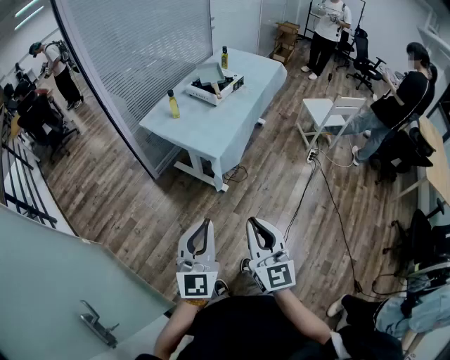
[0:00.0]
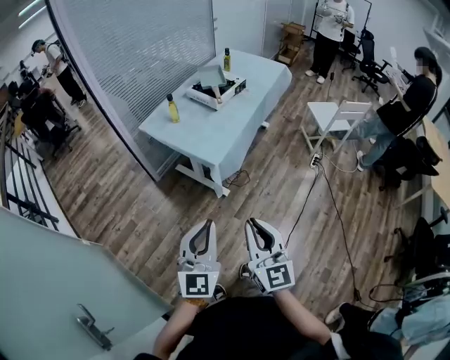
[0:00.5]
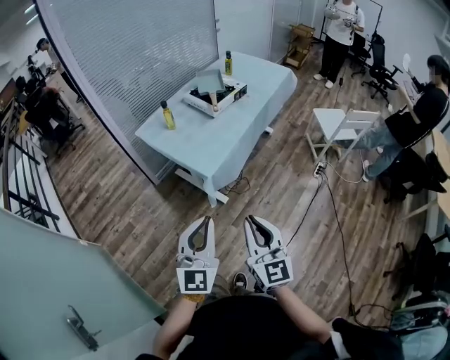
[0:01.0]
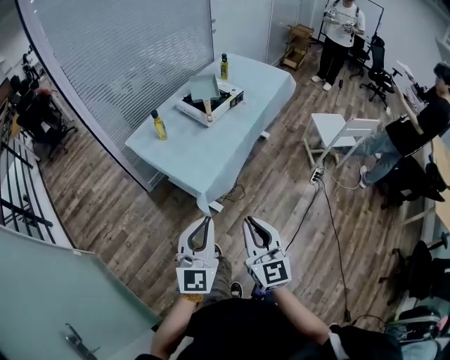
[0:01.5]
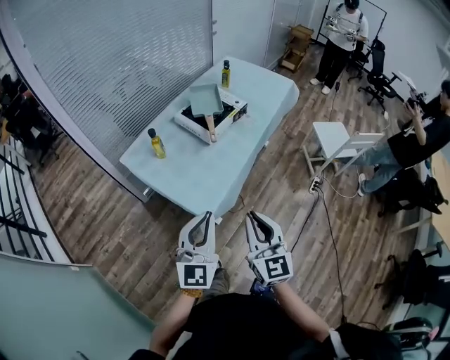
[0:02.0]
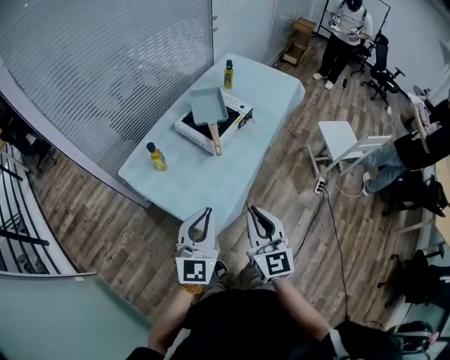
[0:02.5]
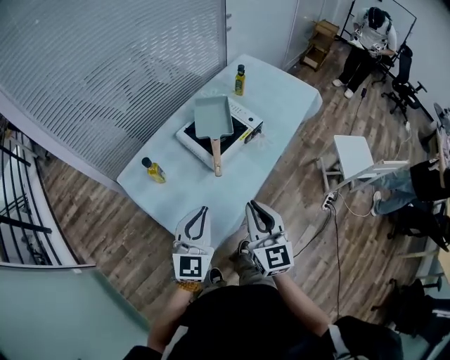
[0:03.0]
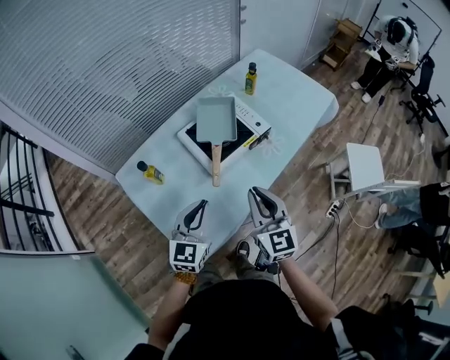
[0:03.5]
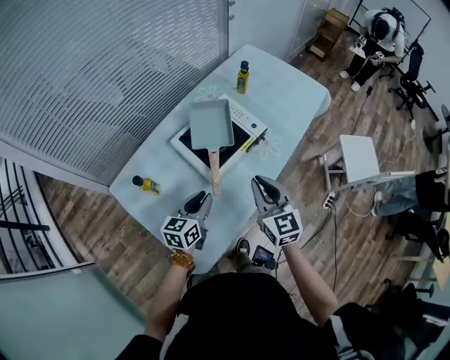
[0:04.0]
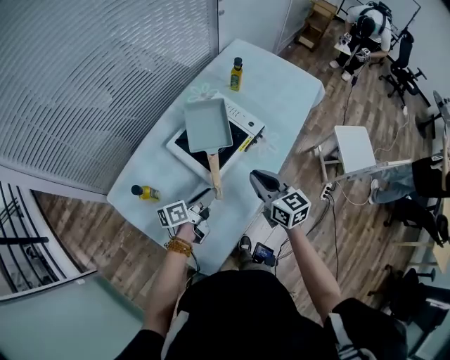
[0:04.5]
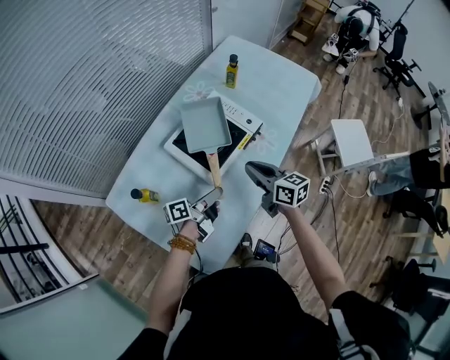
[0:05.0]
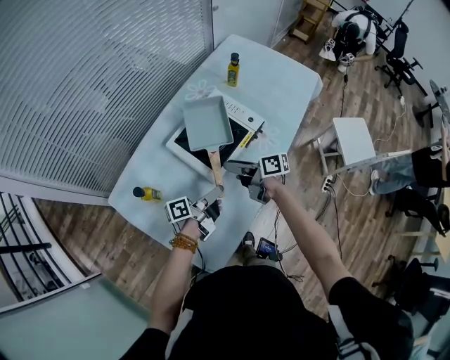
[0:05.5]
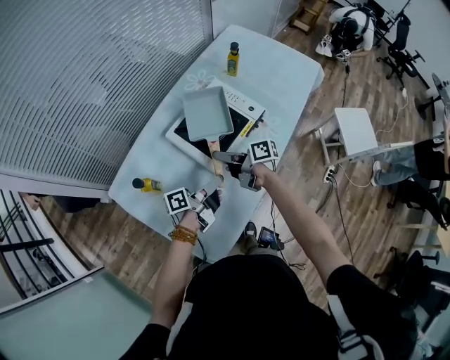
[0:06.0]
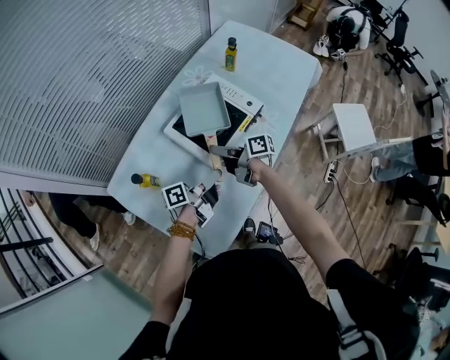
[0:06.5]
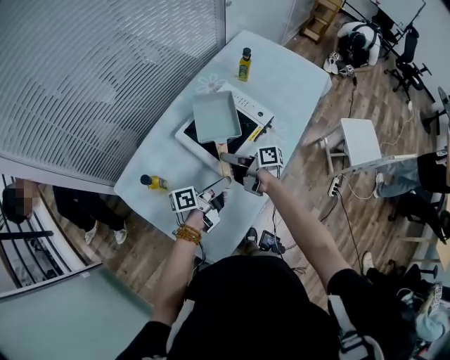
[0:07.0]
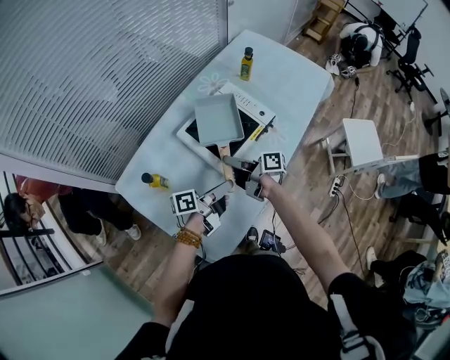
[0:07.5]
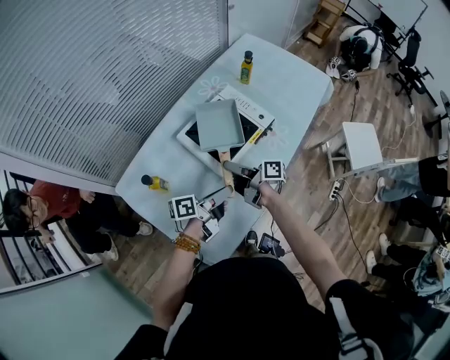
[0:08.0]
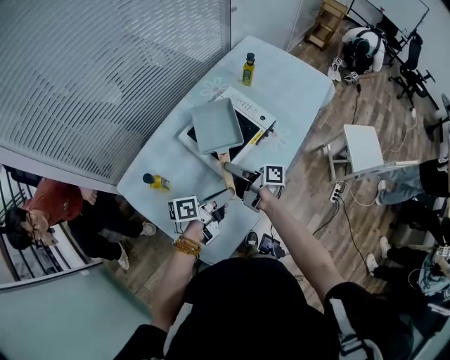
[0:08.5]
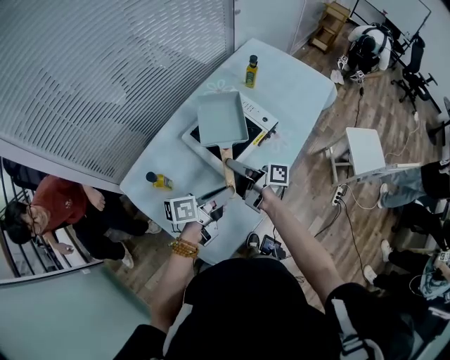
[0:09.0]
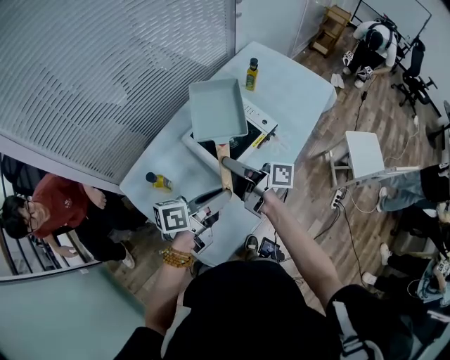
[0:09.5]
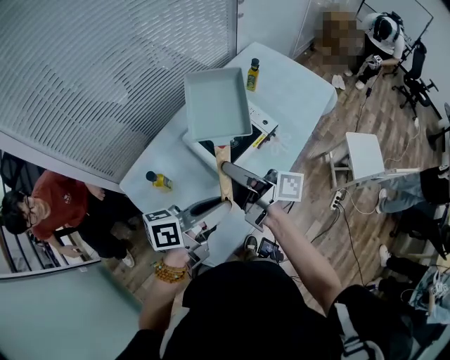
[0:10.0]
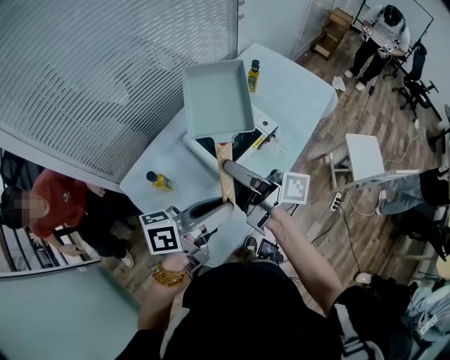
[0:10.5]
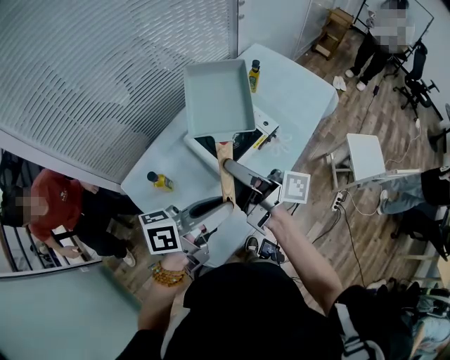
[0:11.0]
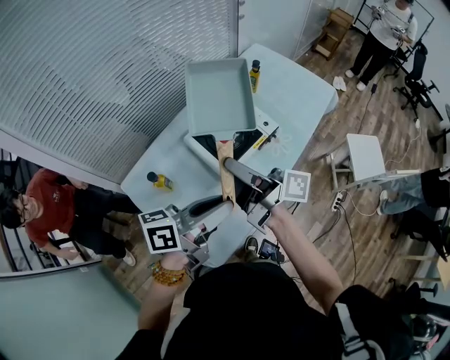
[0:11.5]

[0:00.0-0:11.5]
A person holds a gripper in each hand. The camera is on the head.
0:00.0 to 0:02.0: Both grippers move forward, roughly 35 cm.
0:02.0 to 0:04.0: The left gripper heads forward and downward, covering some 40 cm, and turns by about 40 degrees. The right gripper goes some 40 cm forward.
0:04.0 to 0:06.0: The left gripper shifts by some 5 cm, and rolls counterclockwise, seen from behind, by roughly 50 degrees. The right gripper heads downward, to the left and forward, covering about 20 cm, twists some 70 degrees clockwise, seen from behind, and opens up.
0:06.0 to 0:07.5: The grippers move only a little.
0:07.5 to 0:09.5: Both grippers move upward, roughly 15 cm.
0:09.5 to 0:11.5: Both grippers travel together upward, some 10 cm.

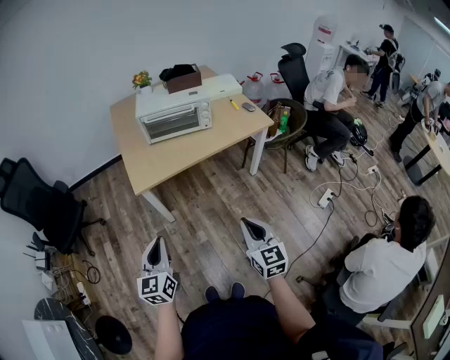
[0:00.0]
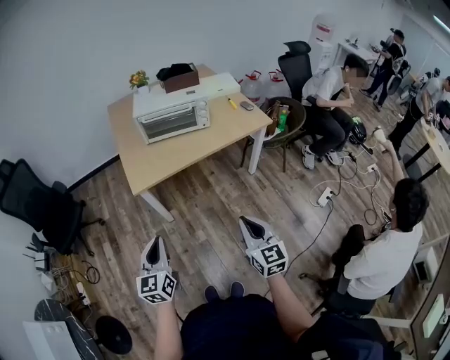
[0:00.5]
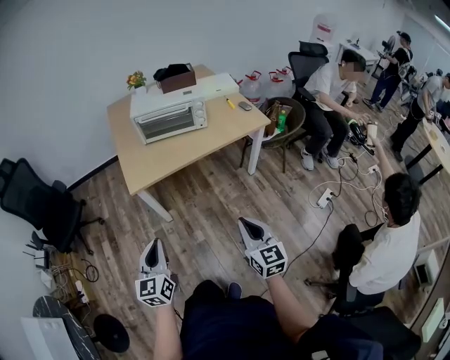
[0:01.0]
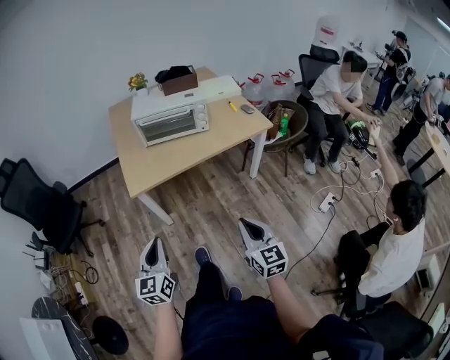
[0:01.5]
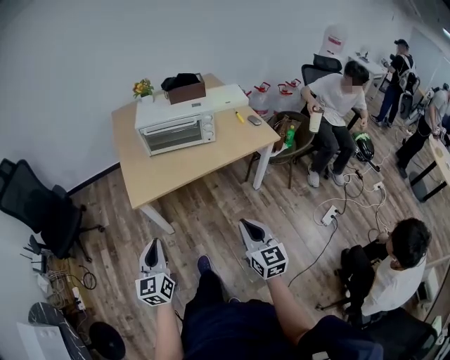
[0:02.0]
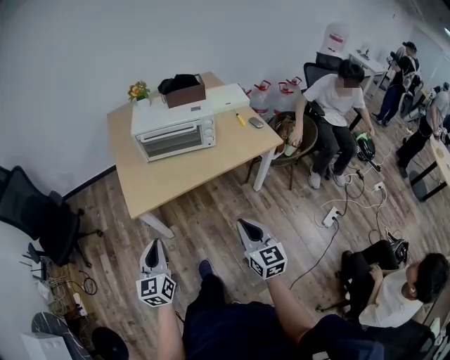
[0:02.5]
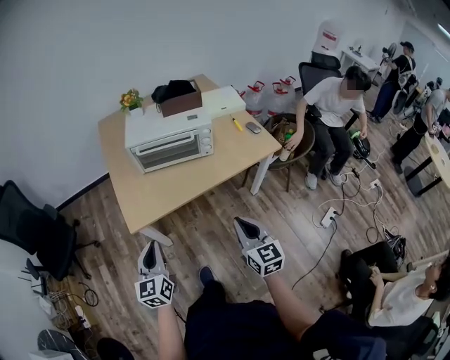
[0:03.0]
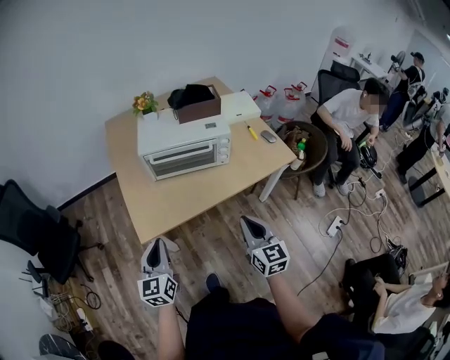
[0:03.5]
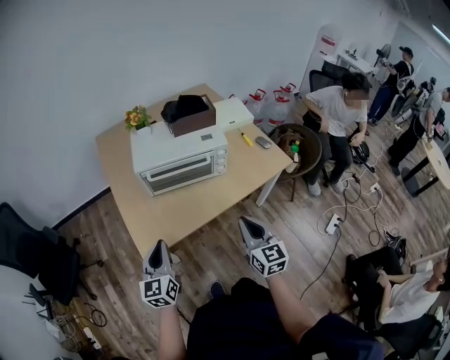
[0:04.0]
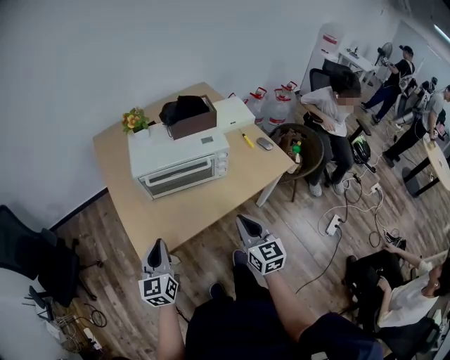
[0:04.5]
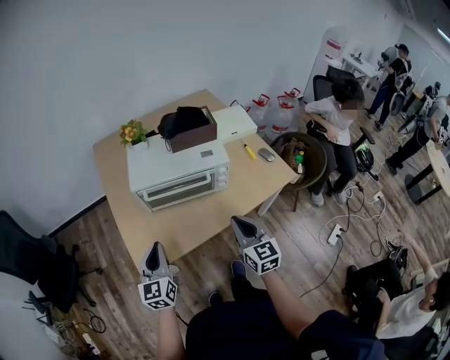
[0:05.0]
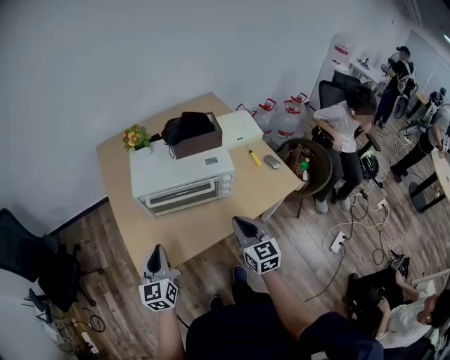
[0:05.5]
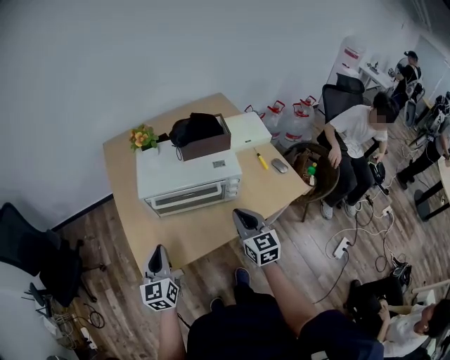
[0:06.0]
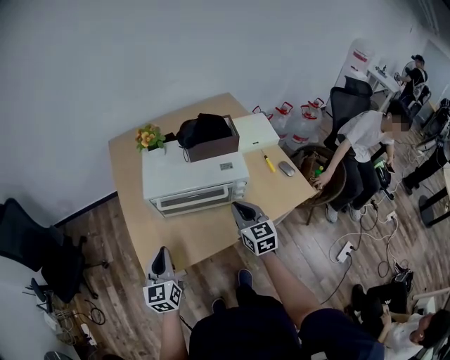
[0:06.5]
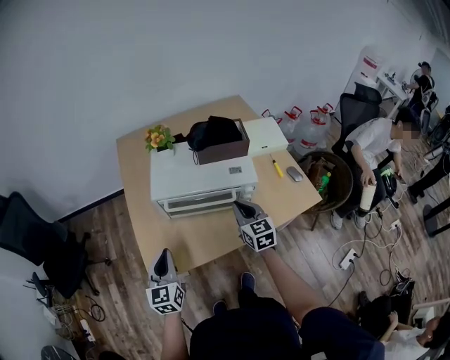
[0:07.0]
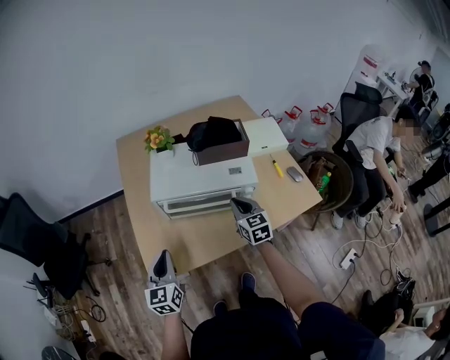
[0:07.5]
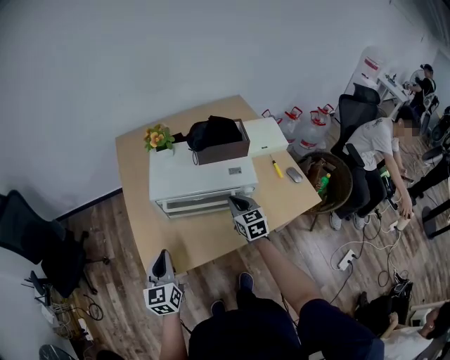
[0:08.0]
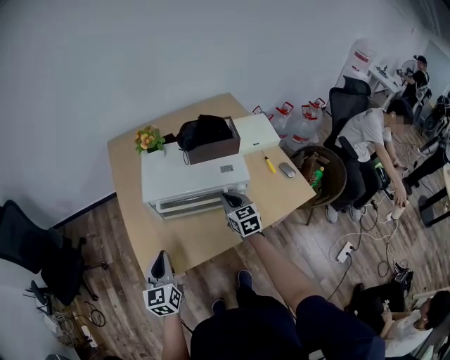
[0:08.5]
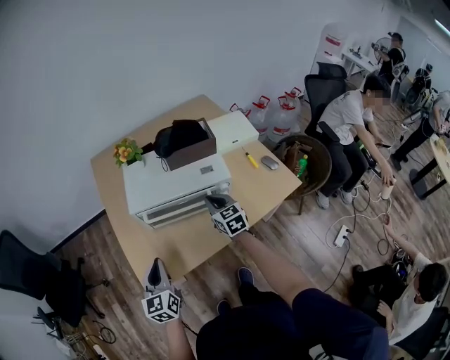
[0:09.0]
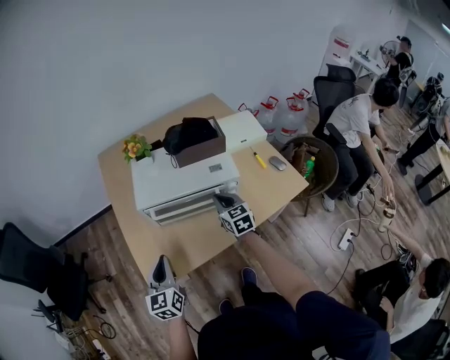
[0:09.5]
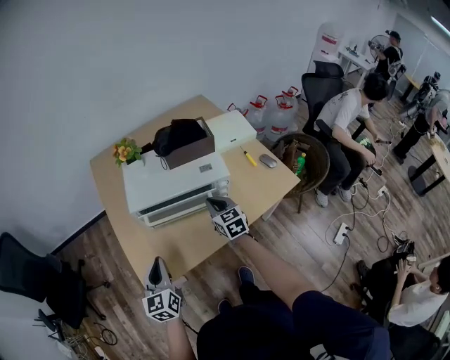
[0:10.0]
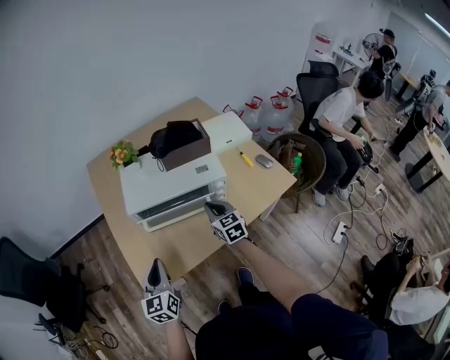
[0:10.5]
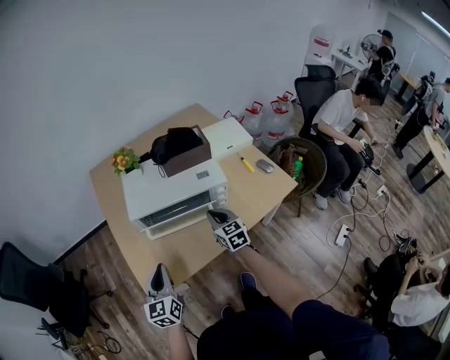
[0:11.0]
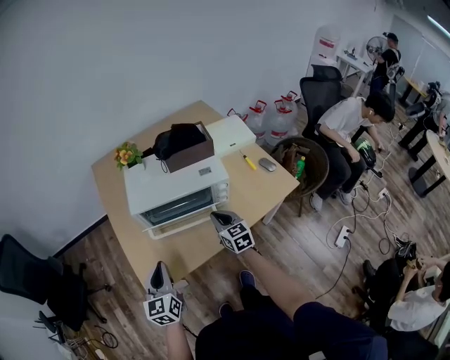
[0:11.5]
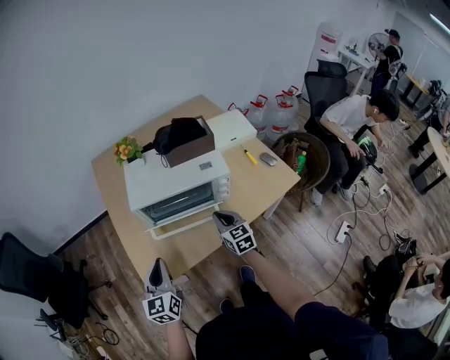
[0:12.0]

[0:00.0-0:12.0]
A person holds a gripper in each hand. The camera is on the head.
0:00.0 to 0:02.0: The two grippers go some 10 cm forward.
0:02.0 to 0:04.0: Both grippers travel together forward, about 30 cm.
0:04.0 to 0:06.0: The left gripper shifts approximately 10 cm forward. The right gripper goes approximately 20 cm forward.
0:06.0 to 0:08.0: The right gripper heads forward and downward, covering approximately 15 cm.
0:08.0 to 0:10.0: The grippers move only a little.
0:10.0 to 0:12.0: The right gripper shifts about 5 cm backward.

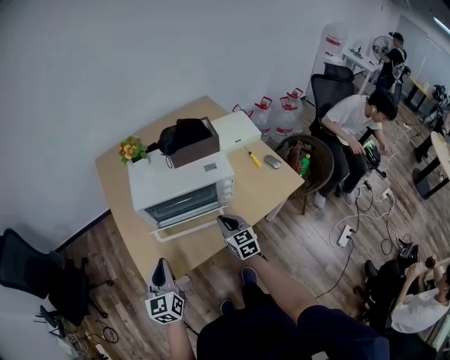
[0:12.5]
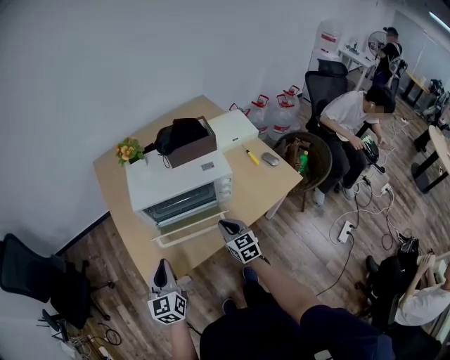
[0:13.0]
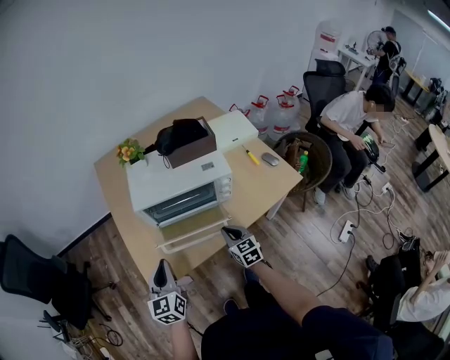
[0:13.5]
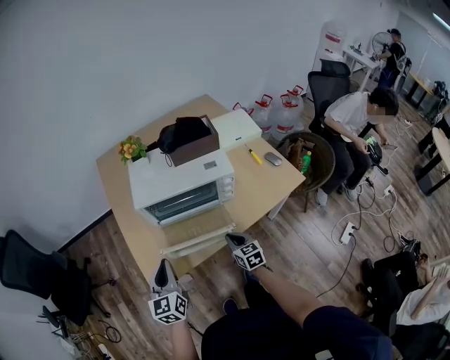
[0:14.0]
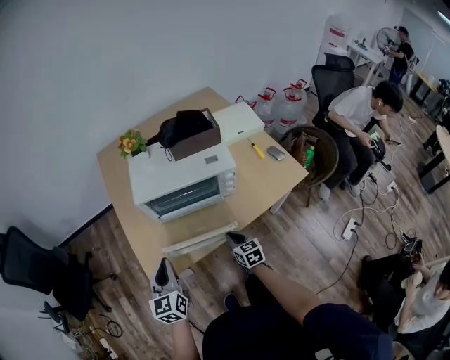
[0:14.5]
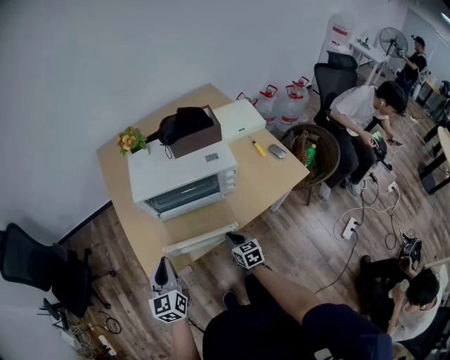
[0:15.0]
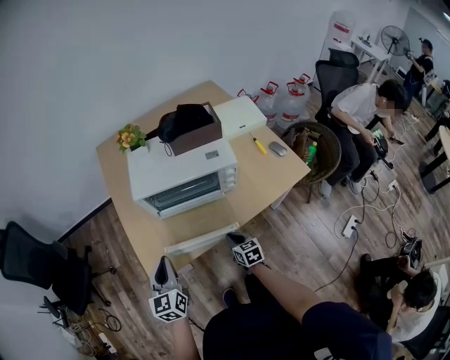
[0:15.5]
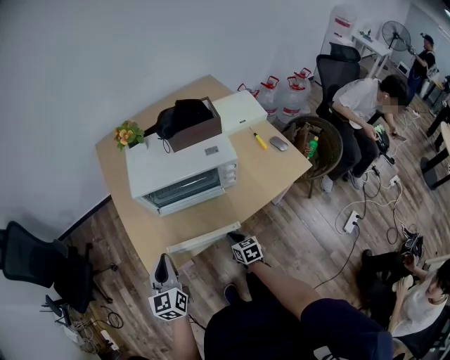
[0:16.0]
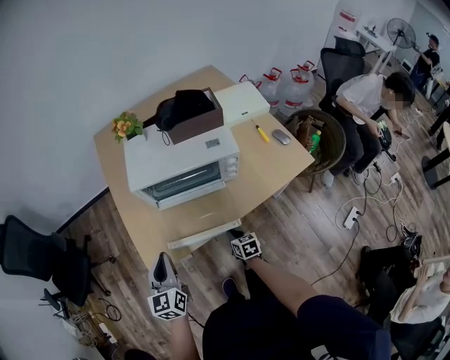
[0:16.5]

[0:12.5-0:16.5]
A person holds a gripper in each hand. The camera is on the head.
0:12.5 to 0:14.5: The right gripper goes roughly 10 cm downward and backward.
0:14.5 to 0:16.5: The right gripper travels downward by roughly 10 cm.
